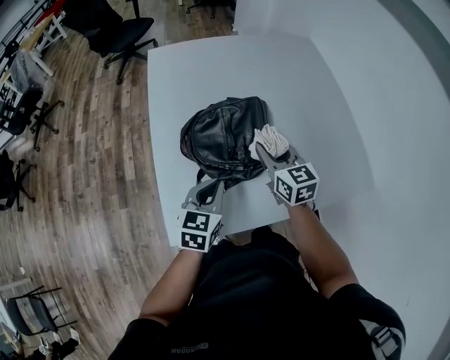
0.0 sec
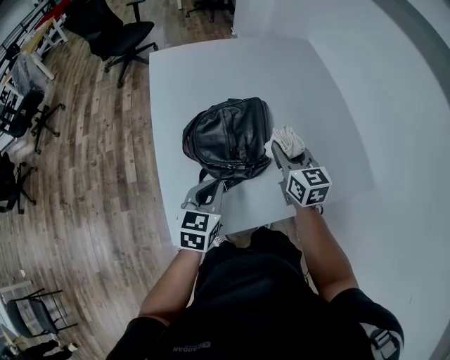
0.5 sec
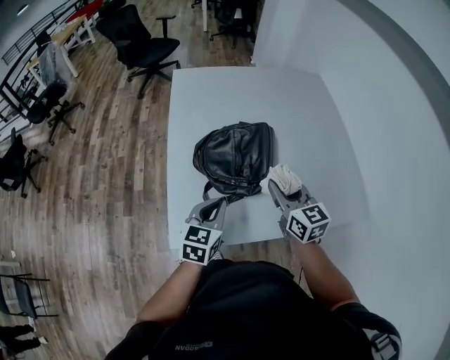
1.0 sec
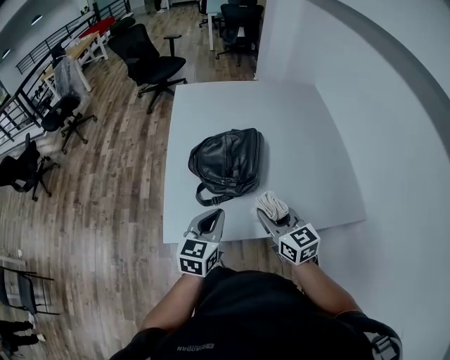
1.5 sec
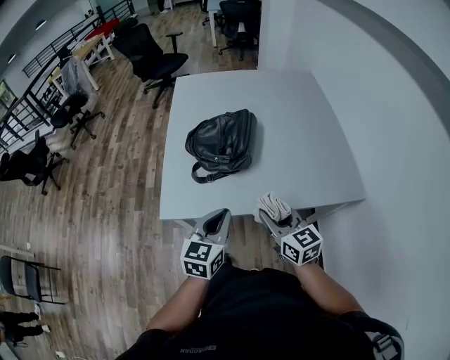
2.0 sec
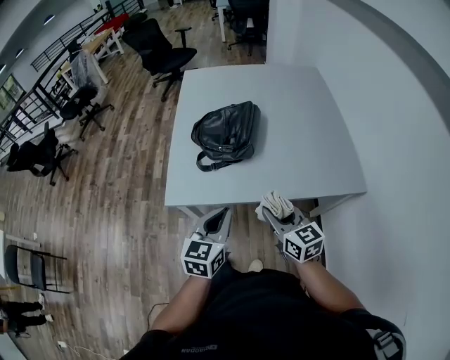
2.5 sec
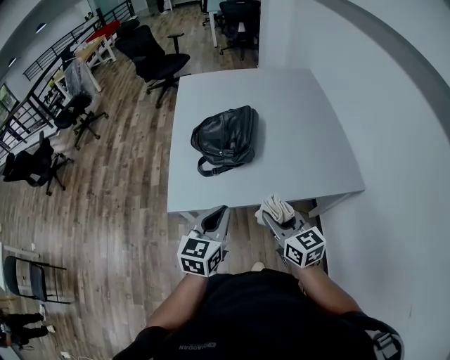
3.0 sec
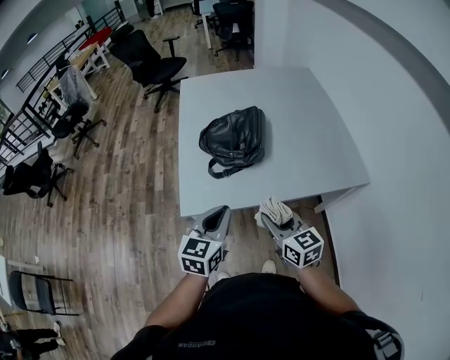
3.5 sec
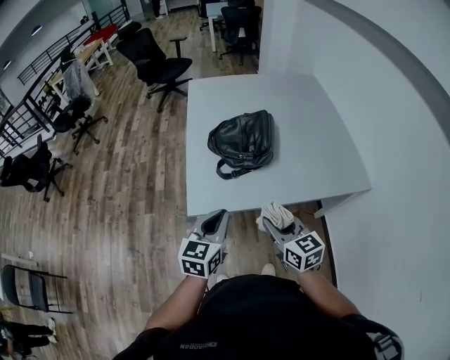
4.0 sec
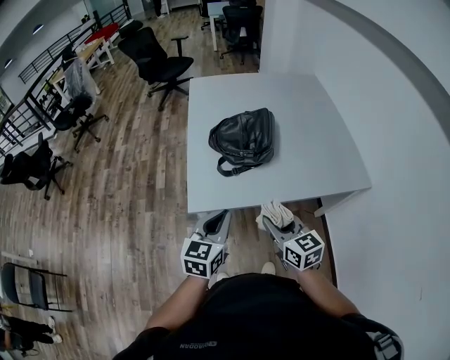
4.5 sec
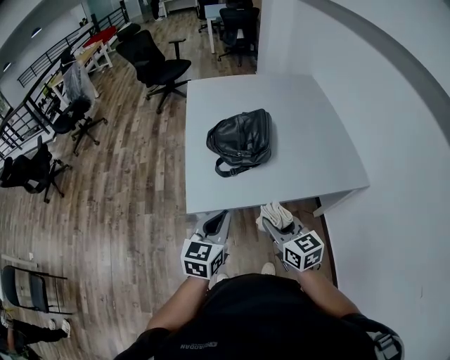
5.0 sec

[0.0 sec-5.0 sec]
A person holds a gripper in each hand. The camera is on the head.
0.0 sec to 2.5 sec: The right gripper heads backward, covering approximately 30 cm, while the left gripper heads backward and to the right, covering roughly 25 cm.
2.5 sec to 5.0 sec: The grippers both shift to the left by about 15 cm.

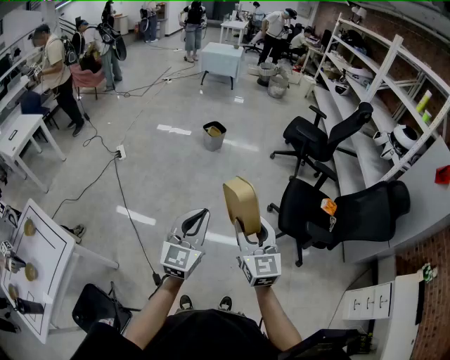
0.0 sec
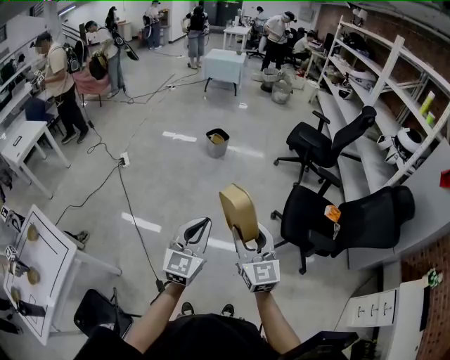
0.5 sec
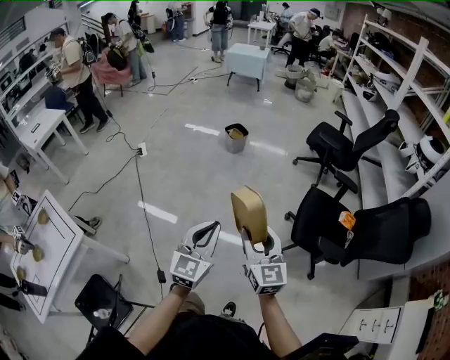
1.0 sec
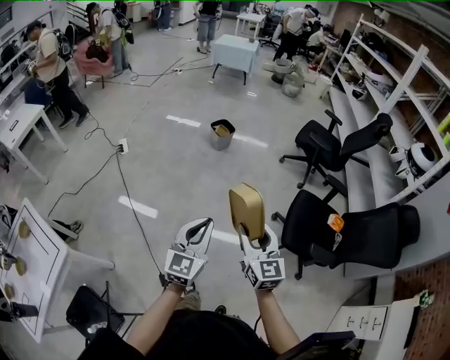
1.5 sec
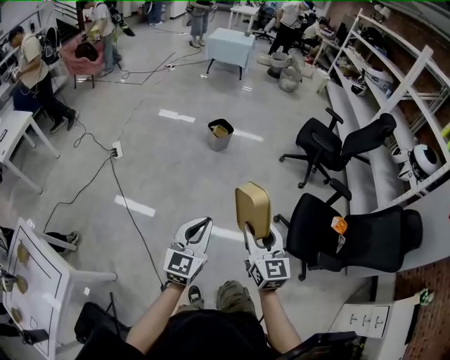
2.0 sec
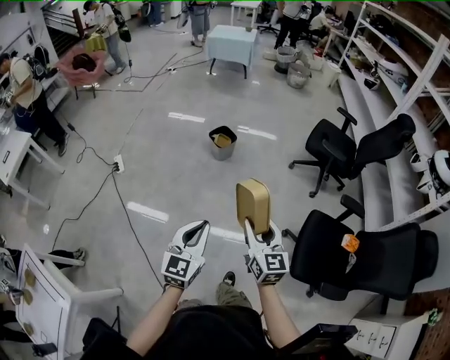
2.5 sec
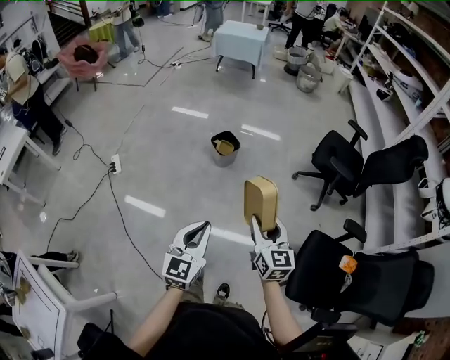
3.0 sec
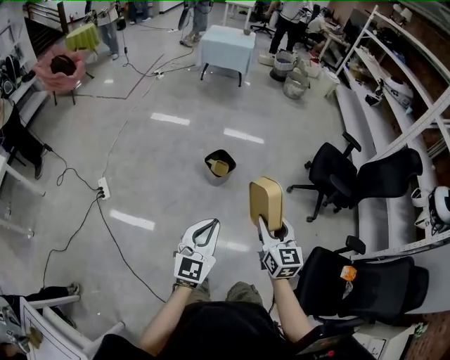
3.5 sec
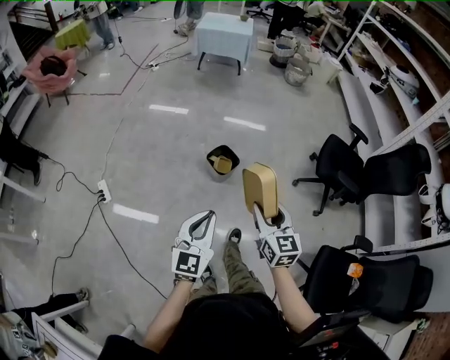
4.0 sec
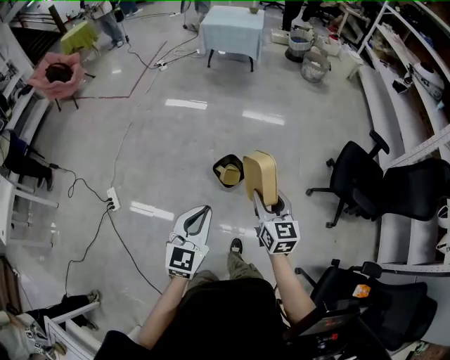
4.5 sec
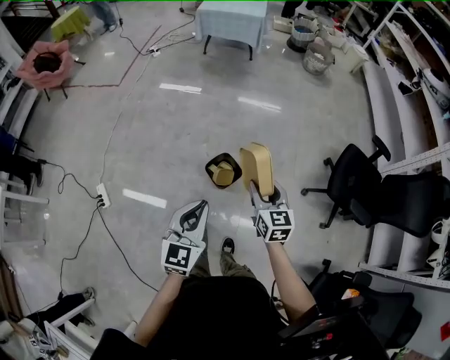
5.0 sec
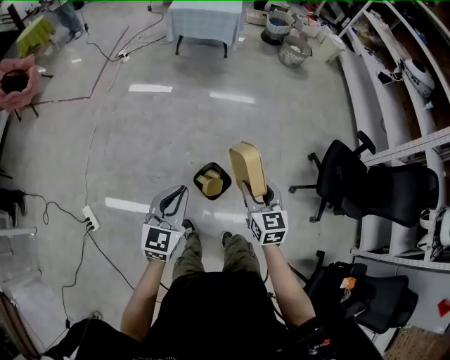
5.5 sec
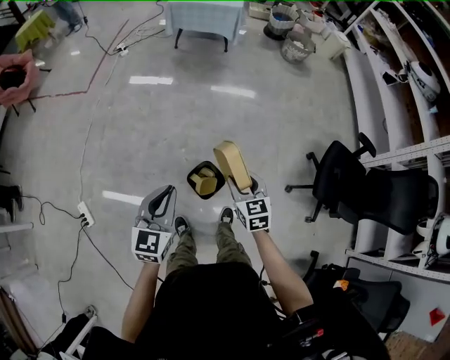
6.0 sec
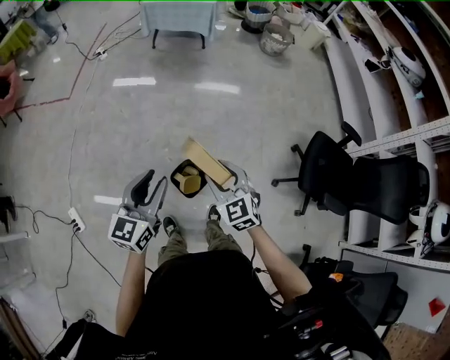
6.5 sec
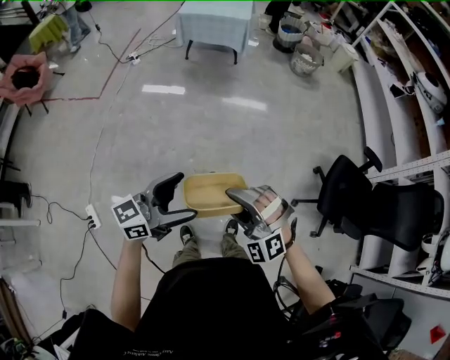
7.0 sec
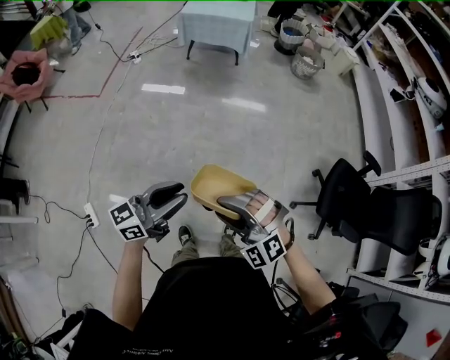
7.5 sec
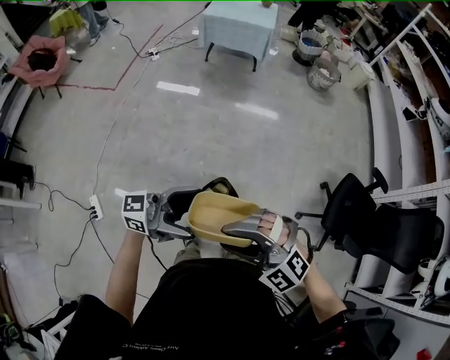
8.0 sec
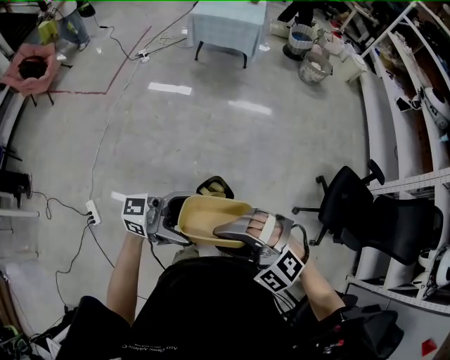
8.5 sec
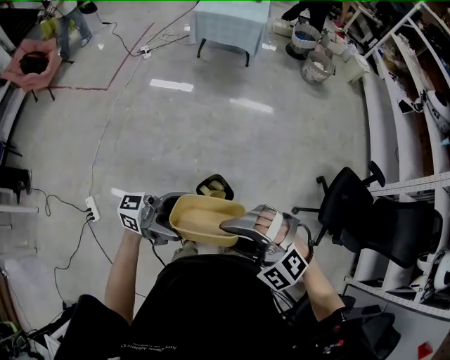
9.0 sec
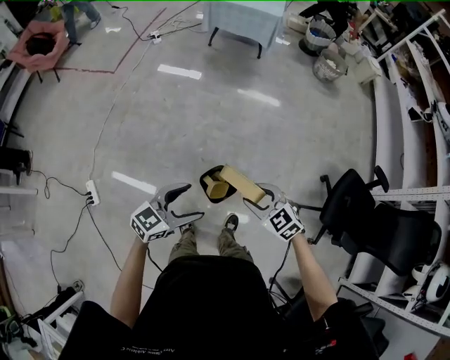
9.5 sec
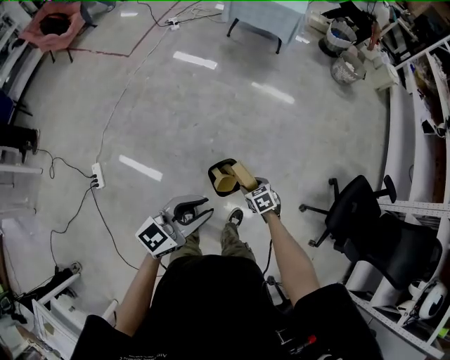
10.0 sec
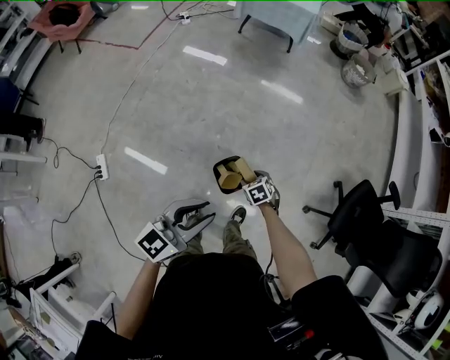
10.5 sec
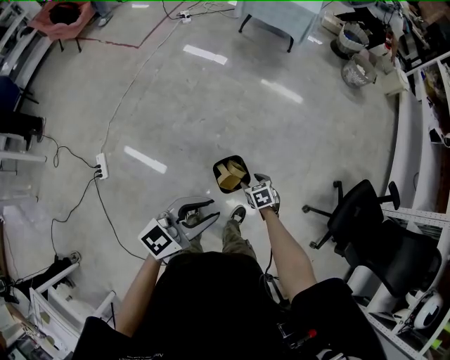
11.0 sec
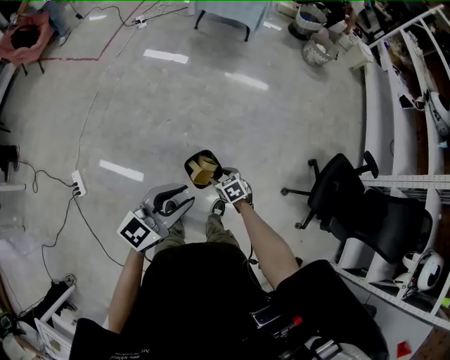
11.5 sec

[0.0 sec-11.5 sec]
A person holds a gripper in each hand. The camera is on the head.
0.0 sec to 2.0 sec: Both grippers move forward, approximately 20 cm.
2.0 sec to 4.0 sec: Both grippers are carried forward, some 60 cm.
4.0 sec to 6.0 sec: Both grippers are carried forward, roughly 50 cm.
6.0 sec to 7.5 sec: The left gripper is displaced upward by approximately 5 cm, changes its angle by about 50 degrees, and opens and closes again; the right gripper moves upward, backward and to the left, approximately 15 cm, and twists roughly 70 degrees counterclockwise, seen from behind.
7.5 sec to 9.5 sec: Both grippers travel together downward, approximately 10 cm. The left gripper swivels some 30 degrees, and opens its fingers, while the right gripper rolls clockwise, seen from behind, by approximately 50 degrees.
9.5 sec to 11.5 sec: The right gripper moves downward, some 20 cm, and turns by roughly 30 degrees; the left gripper goes some 5 cm upward, and closes its fingers.

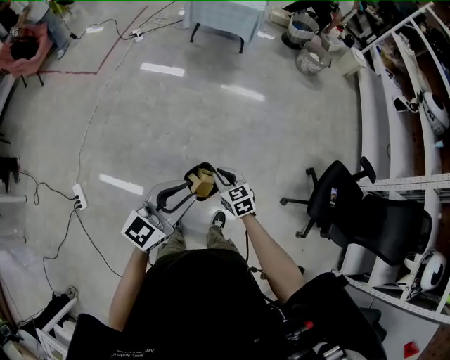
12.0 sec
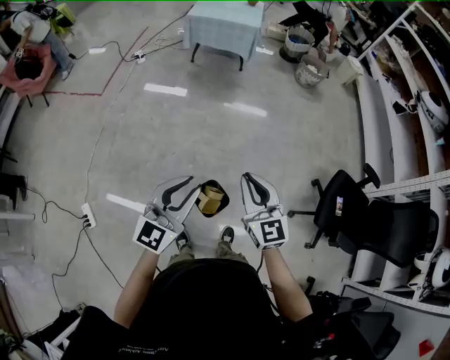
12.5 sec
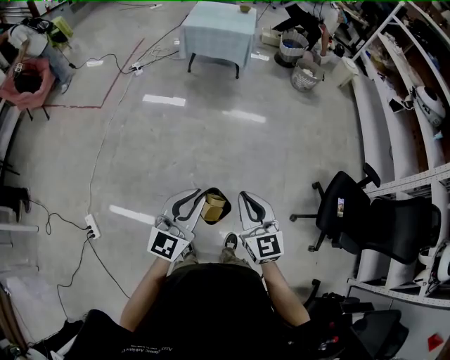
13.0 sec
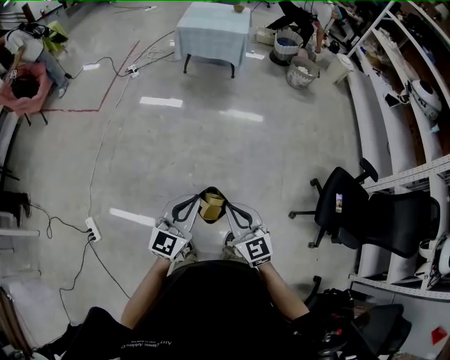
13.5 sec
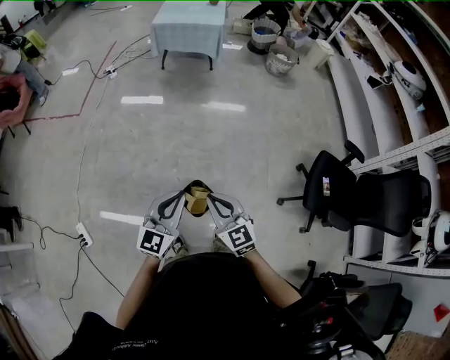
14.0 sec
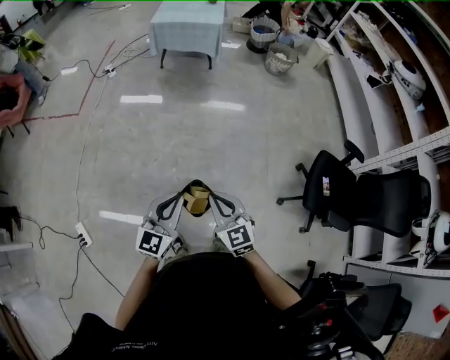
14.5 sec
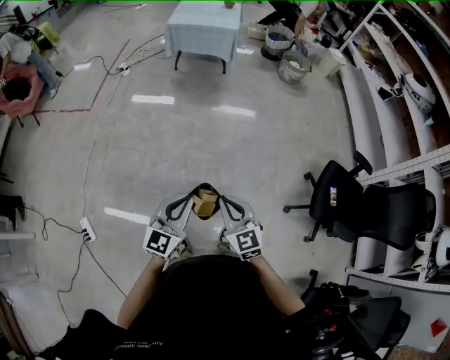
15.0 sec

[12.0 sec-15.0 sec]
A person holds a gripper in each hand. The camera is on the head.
12.0 sec to 13.5 sec: The right gripper heads upward and backward, covering about 20 cm, and swivels approximately 20 degrees.
13.5 sec to 15.0 sec: The grippers stay close to where they were, moving slightly.

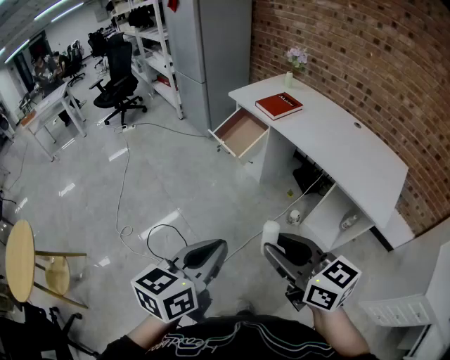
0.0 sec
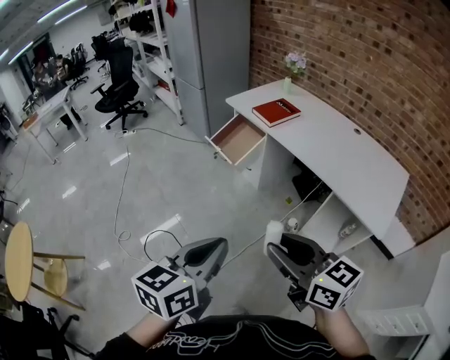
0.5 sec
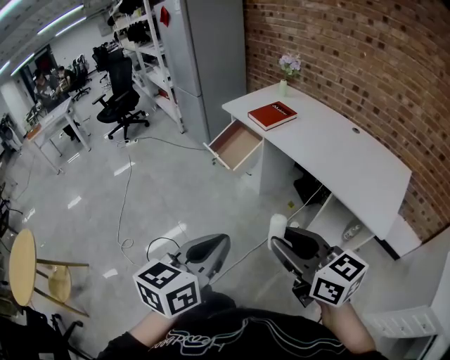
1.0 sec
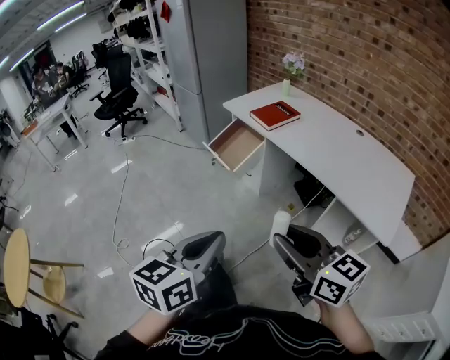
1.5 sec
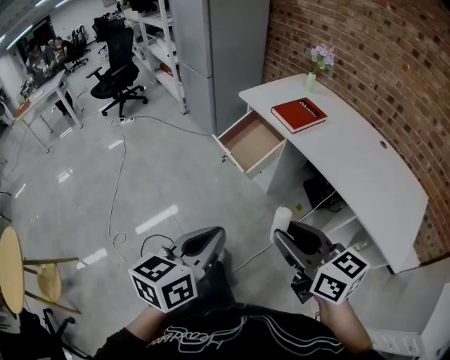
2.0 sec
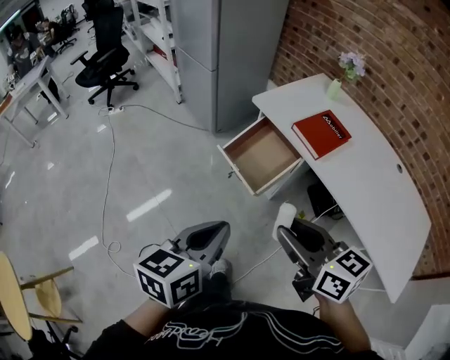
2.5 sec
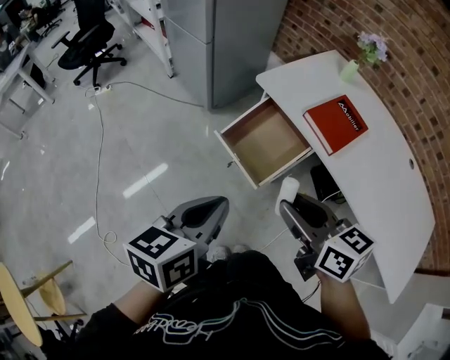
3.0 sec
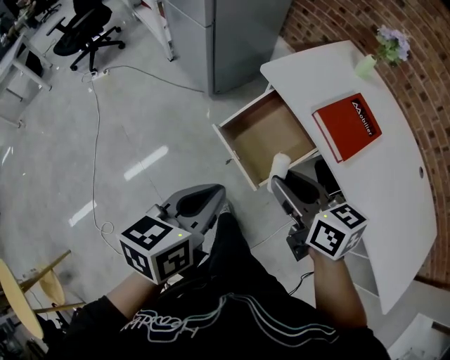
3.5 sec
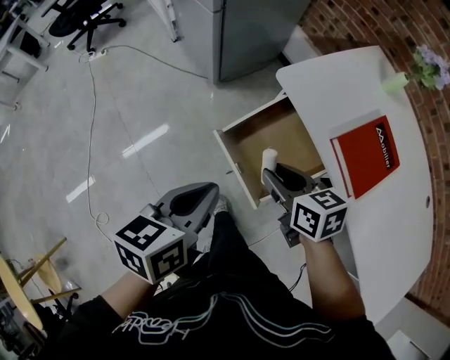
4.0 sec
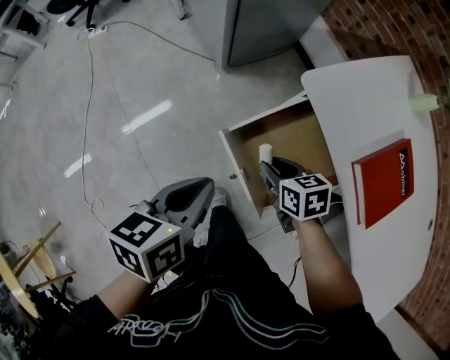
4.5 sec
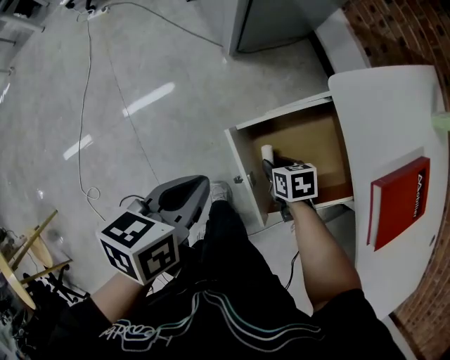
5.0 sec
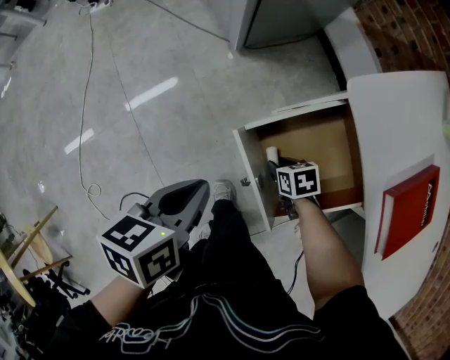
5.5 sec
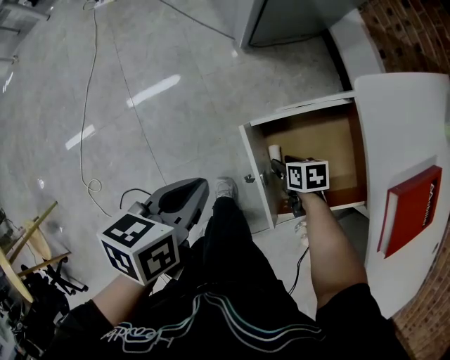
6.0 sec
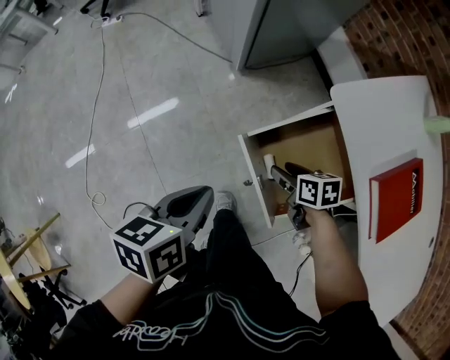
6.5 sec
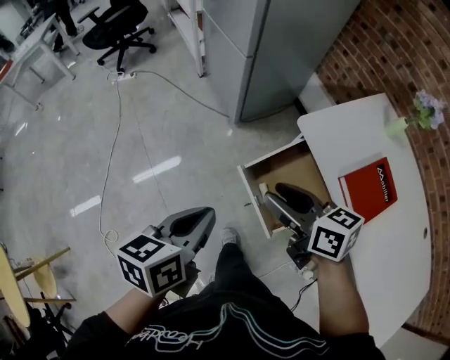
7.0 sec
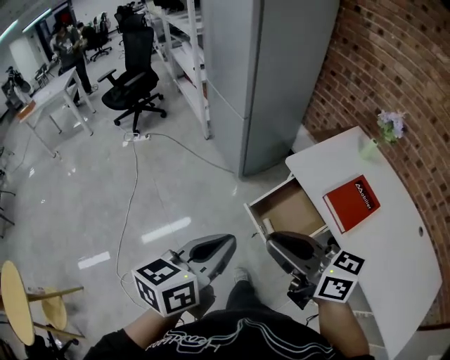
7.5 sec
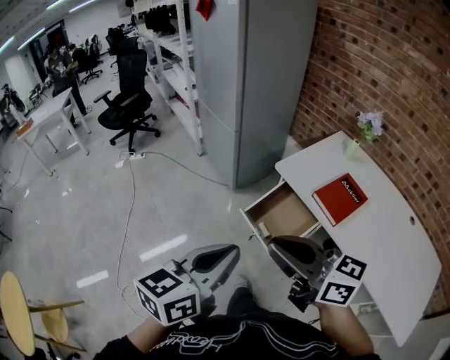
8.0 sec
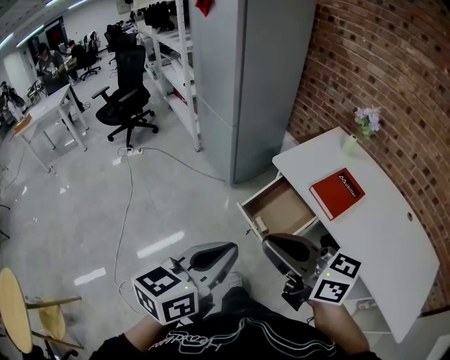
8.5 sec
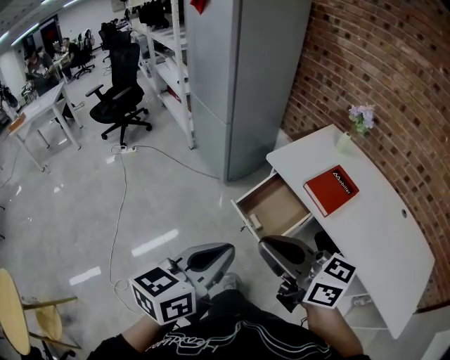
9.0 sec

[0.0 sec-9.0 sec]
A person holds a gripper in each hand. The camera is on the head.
0.0 sec to 2.0 sec: The grippers both shift forward by approximately 25 cm.
2.0 sec to 4.5 sec: The two grippers travel together, forward, approximately 70 cm. The left gripper heads downward, covering about 25 cm, and turns by some 30 degrees. Meanwhile the right gripper goes about 40 cm downward, and points its fingers some 40 degrees further downward.
4.5 sec to 7.0 sec: The right gripper shifts roughly 25 cm upward, and rotates some 30 degrees. The left gripper shifts roughly 15 cm upward, backward and to the left.
7.0 sec to 9.0 sec: The grippers both shift backward and upward by roughly 30 cm. The right gripper changes its angle by roughly 20 degrees, and closes up. Meanwhile the left gripper changes its angle by about 30 degrees.
